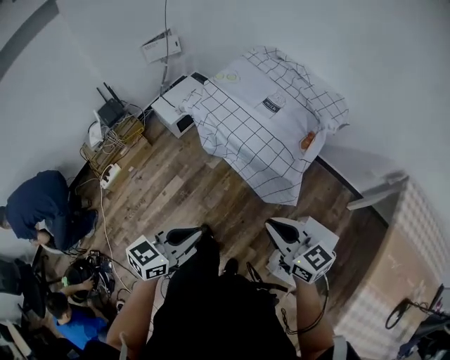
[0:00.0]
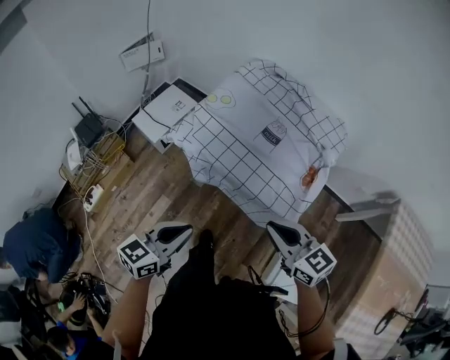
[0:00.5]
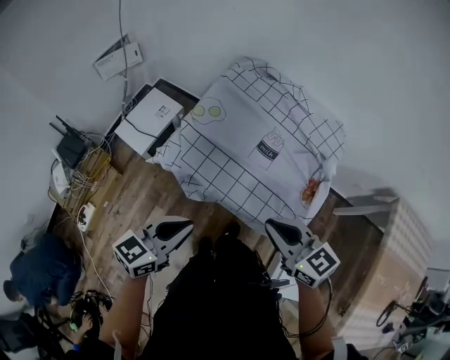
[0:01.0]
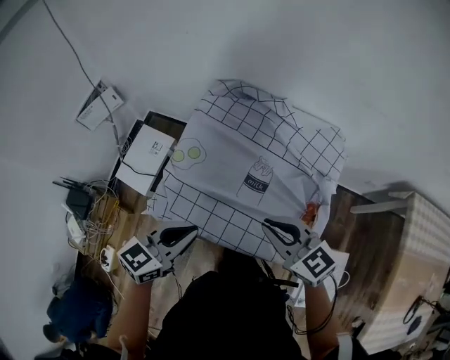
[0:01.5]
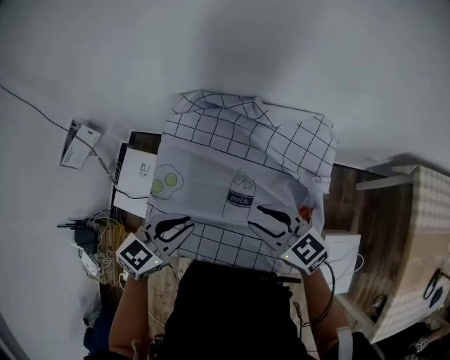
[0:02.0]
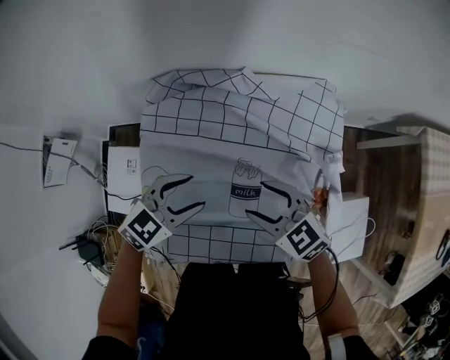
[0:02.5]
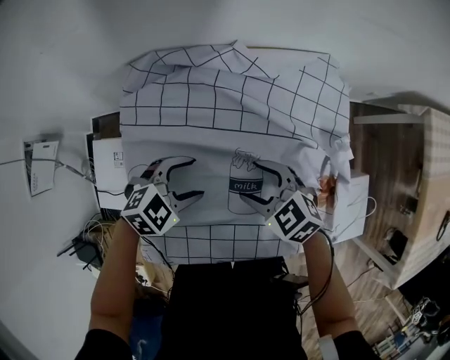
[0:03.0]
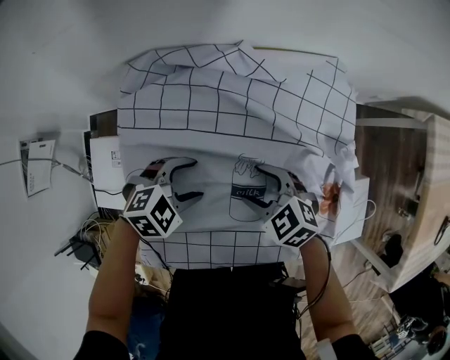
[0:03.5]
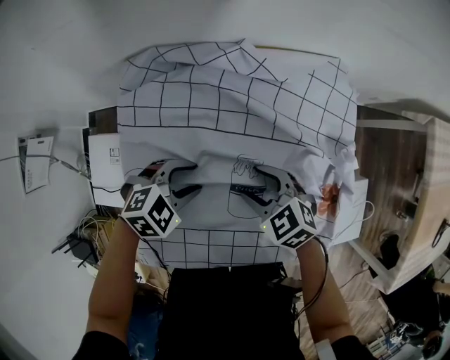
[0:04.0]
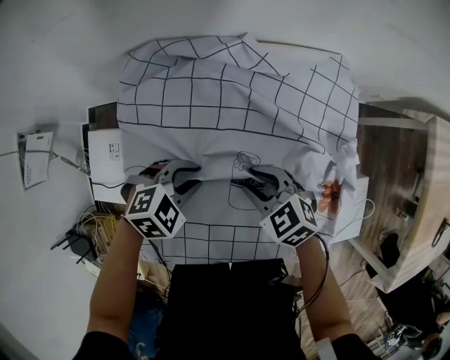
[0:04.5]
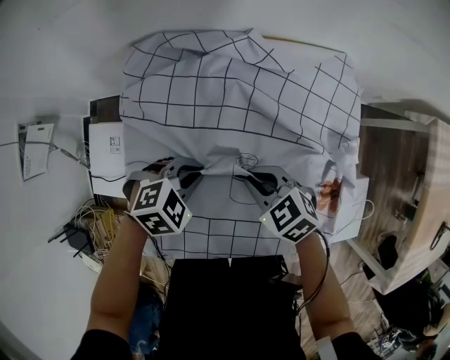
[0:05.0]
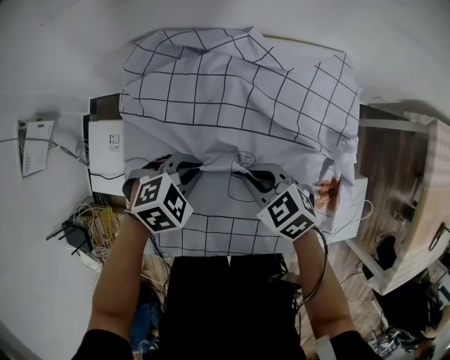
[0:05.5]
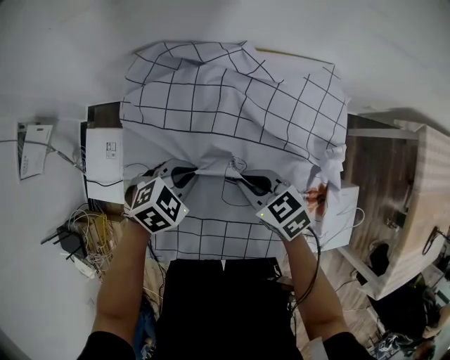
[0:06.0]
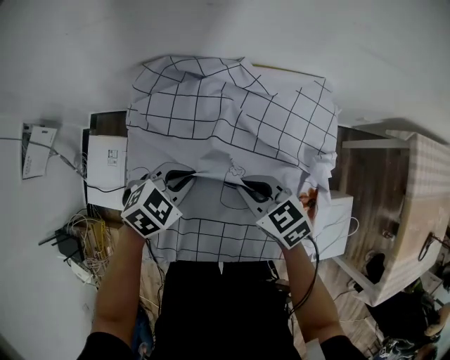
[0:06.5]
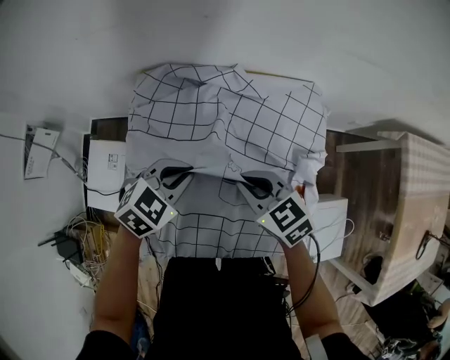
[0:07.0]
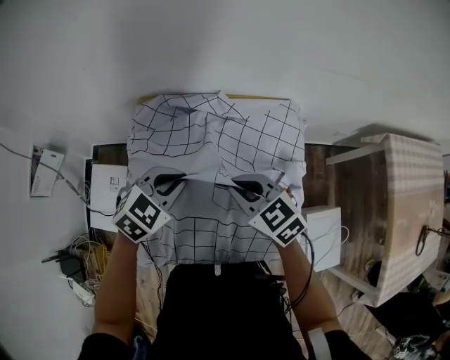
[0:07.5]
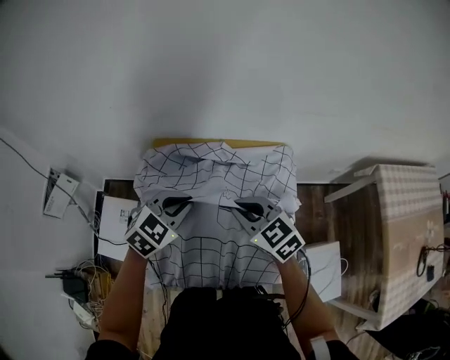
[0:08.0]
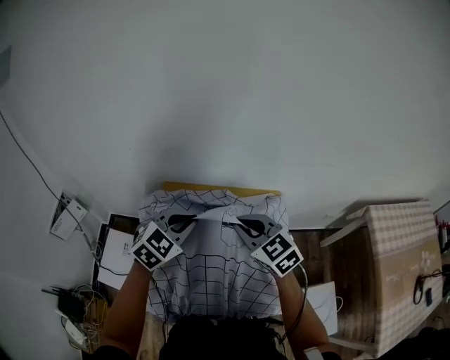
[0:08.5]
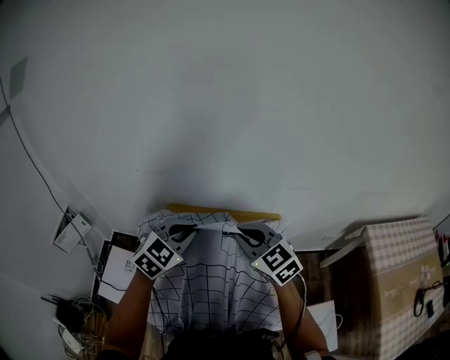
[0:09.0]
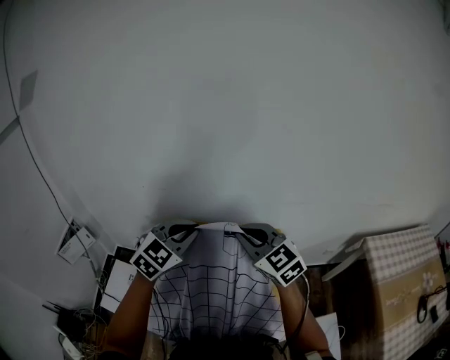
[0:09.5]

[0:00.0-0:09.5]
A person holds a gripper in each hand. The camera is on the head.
0:00.0 to 0:02.0: Both grippers are carried forward, roughly 50 cm. The right gripper opens up. Meanwhile the left gripper swivels some 40 degrees.
0:02.0 to 0:04.0: Both grippers move downward, about 20 cm. The right gripper swivels roughly 30 degrees, and opens up, while the left gripper rotates approximately 50 degrees, and opens its fingers.
0:04.0 to 0:05.5: The right gripper closes its fingers, while the left gripper closes its fingers.
0:05.5 to 0:07.5: Both grippers move upward, some 20 cm. The left gripper swivels some 20 degrees.
0:07.5 to 0:09.5: The grippers both shift upward by roughly 25 cm. The left gripper rotates some 30 degrees, while the right gripper rotates about 30 degrees.

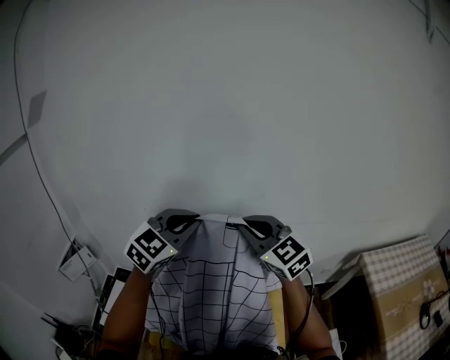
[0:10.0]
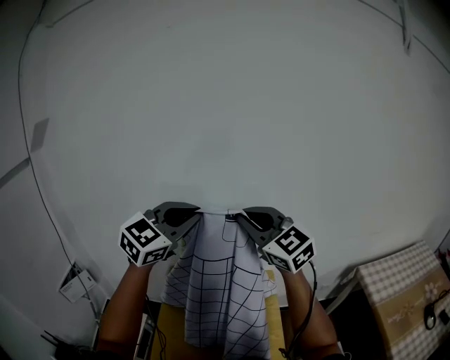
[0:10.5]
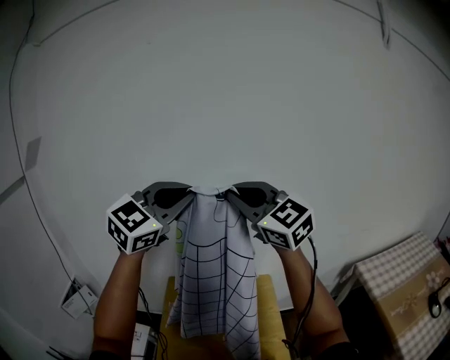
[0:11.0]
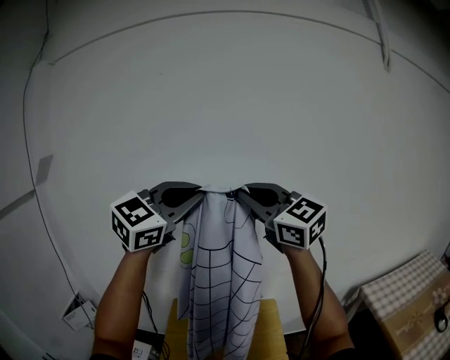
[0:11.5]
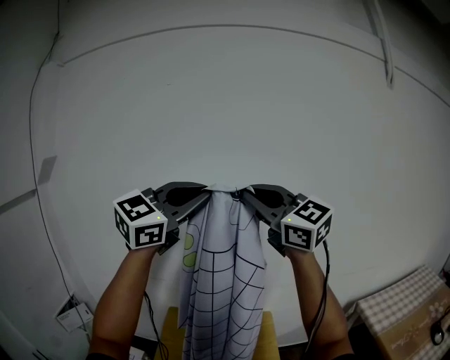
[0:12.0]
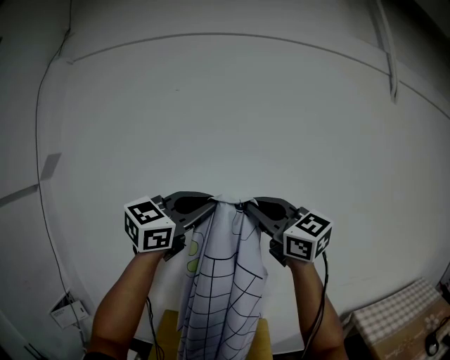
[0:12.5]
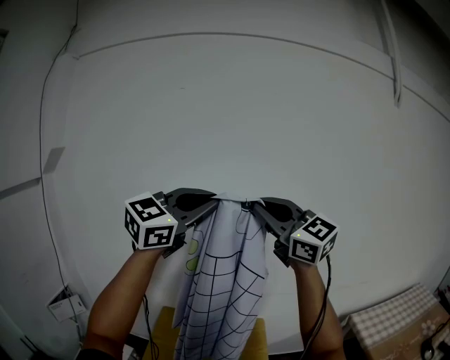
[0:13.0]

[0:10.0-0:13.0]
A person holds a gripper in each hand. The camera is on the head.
0:10.0 to 0:11.5: The grippers both shift upward by about 30 cm. The left gripper turns by about 20 degrees; the right gripper rotates roughly 20 degrees.
0:11.5 to 0:13.0: The grippers stay close to where they were, moving slightly.

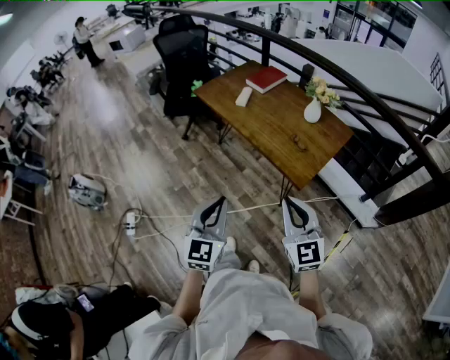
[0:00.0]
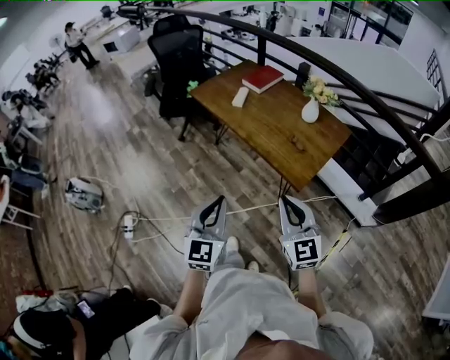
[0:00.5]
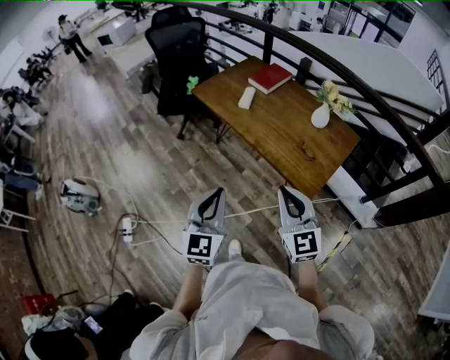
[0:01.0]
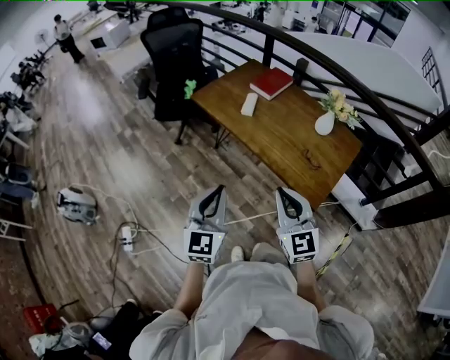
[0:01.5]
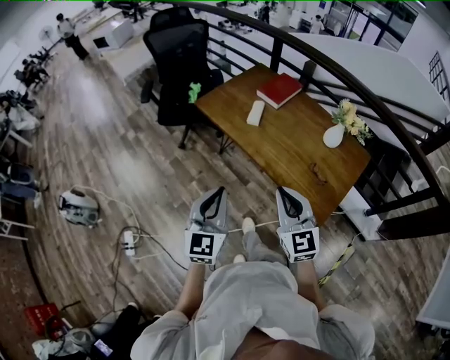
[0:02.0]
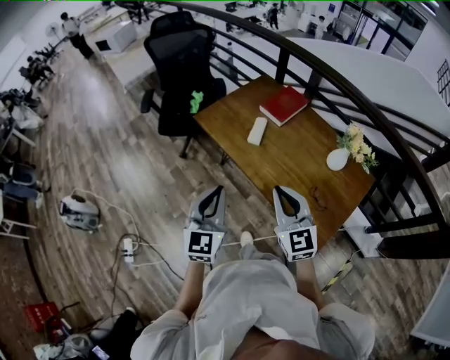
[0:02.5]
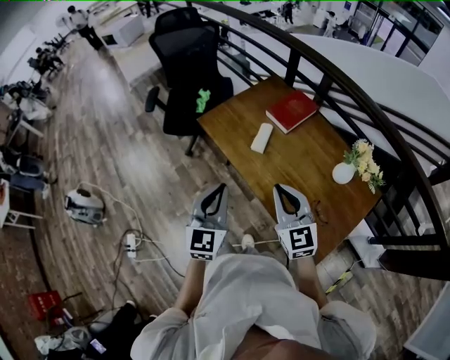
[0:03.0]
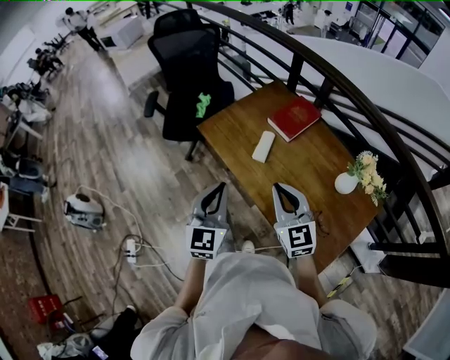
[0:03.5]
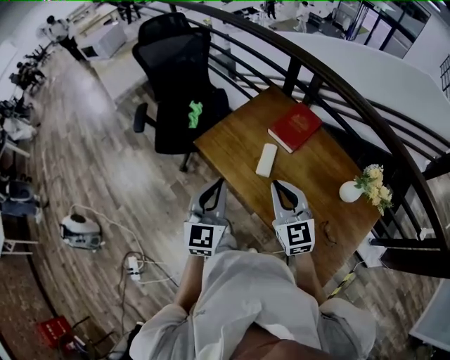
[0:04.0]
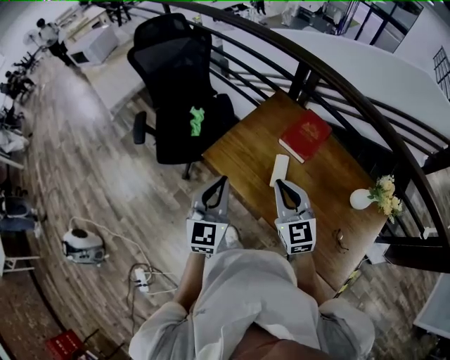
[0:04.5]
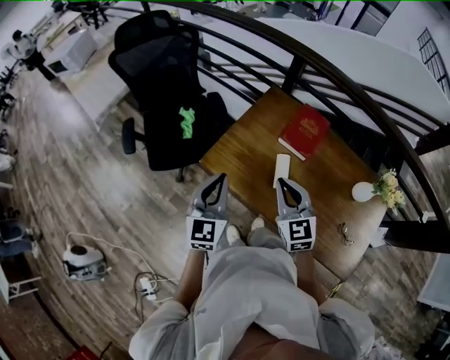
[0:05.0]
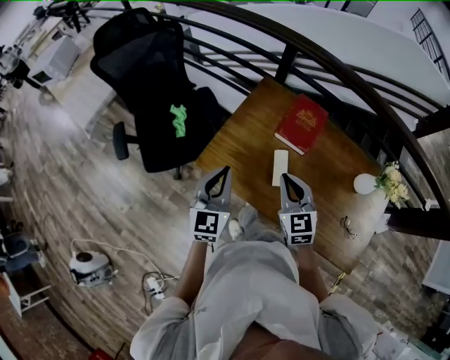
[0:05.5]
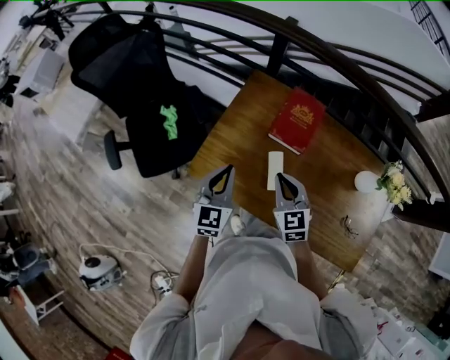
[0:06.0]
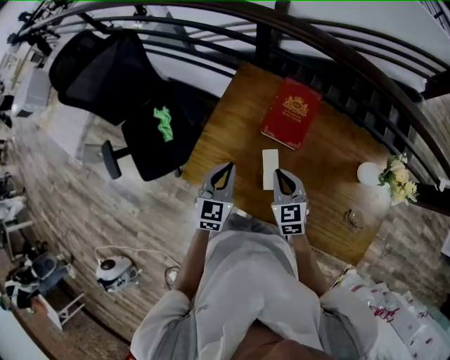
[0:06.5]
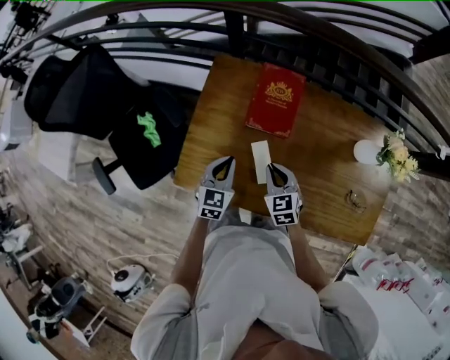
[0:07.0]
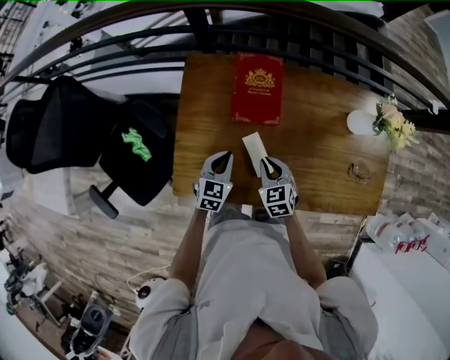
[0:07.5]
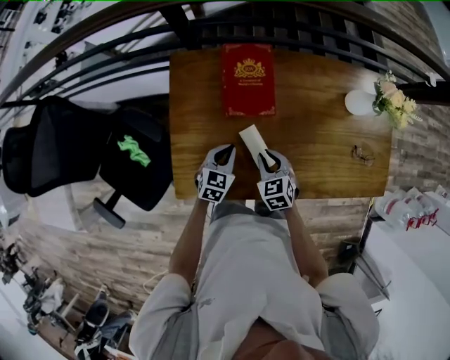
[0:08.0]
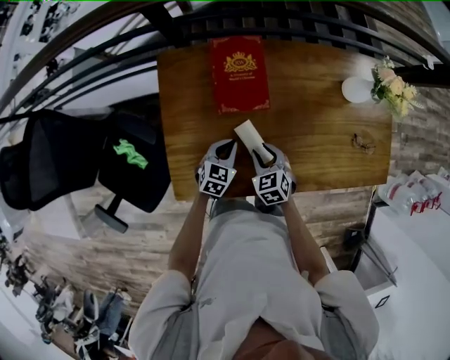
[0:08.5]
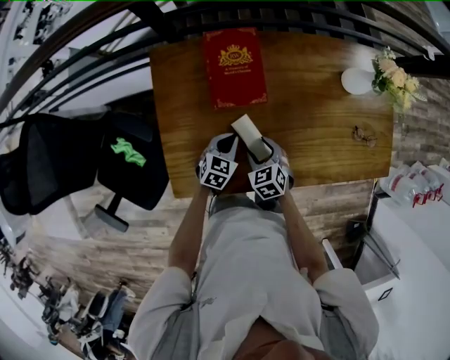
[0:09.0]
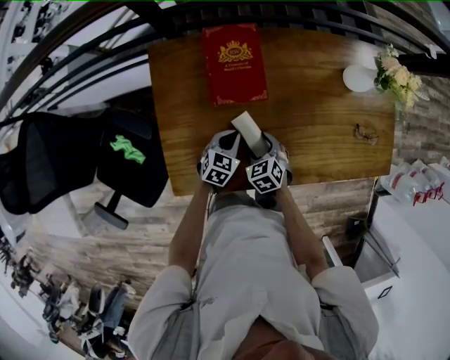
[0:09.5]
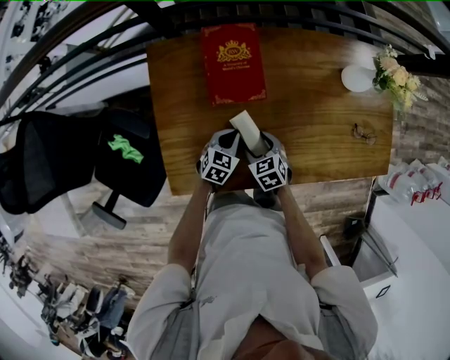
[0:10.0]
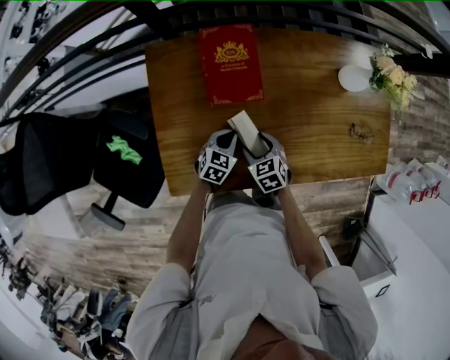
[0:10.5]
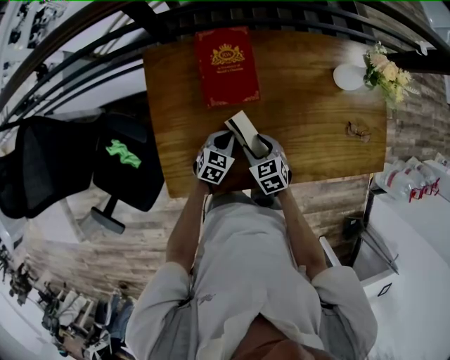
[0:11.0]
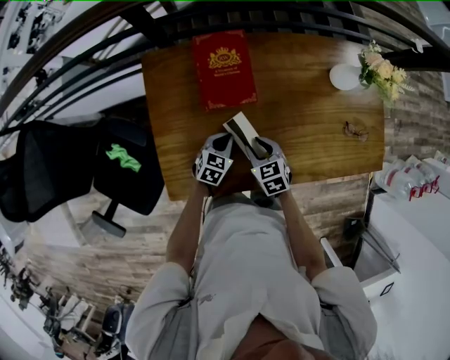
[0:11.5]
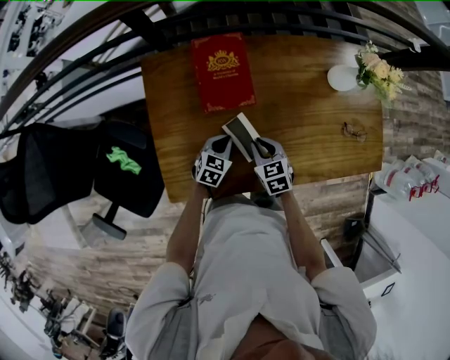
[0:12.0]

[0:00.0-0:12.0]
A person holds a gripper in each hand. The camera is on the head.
0:00.0 to 0:02.0: The right gripper travels forward and to the left by some 30 cm, while the left gripper heads forward, covering some 25 cm.
0:02.0 to 0:04.0: The grippers both shift forward by about 35 cm.
0:04.0 to 0:06.0: Both grippers move forward and downward, approximately 25 cm. The left gripper swivels about 20 degrees. The right gripper turns by roughly 30 degrees.
0:06.0 to 0:08.0: Both grippers travel together downward, approximately 20 cm. The left gripper rotates roughly 50 degrees, while the right gripper turns by about 30 degrees.
0:08.0 to 0:10.0: The two grippers go approximately 5 cm downward. The right gripper opens up.
0:10.0 to 0:12.0: The right gripper shifts by approximately 5 cm, and closes up.

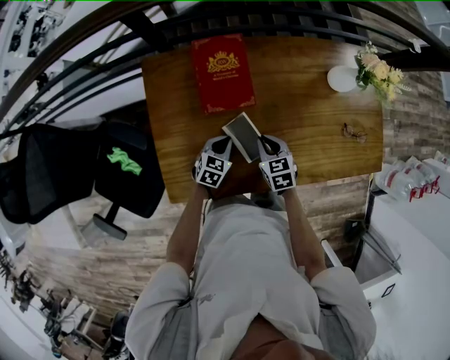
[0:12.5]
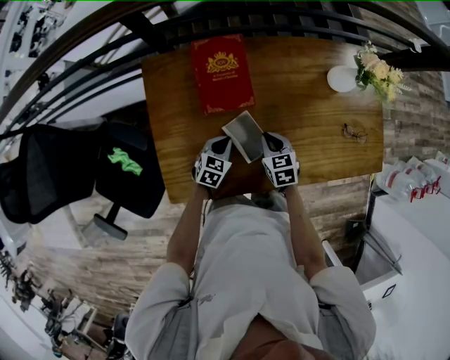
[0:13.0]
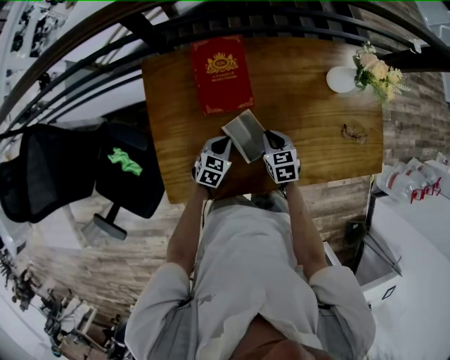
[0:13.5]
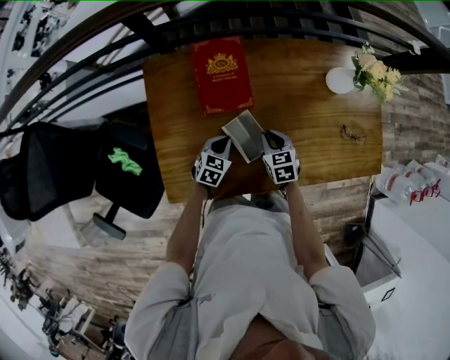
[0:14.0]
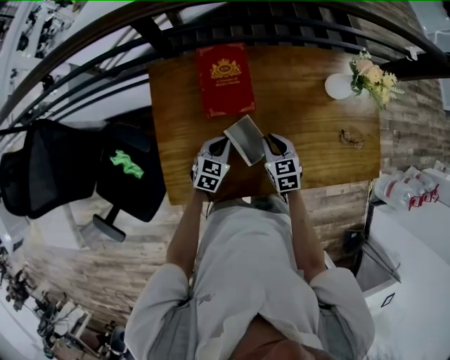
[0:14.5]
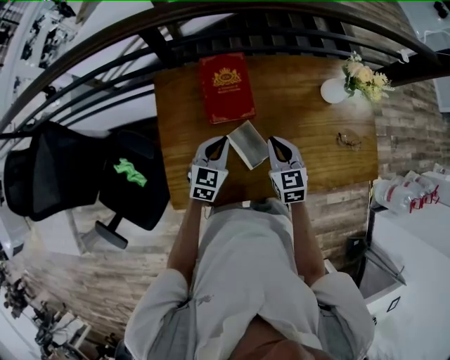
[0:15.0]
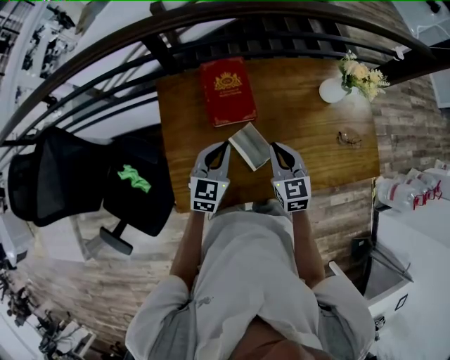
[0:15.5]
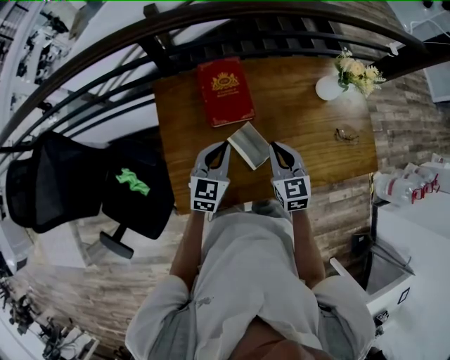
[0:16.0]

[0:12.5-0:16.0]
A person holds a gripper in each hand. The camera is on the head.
0:12.5 to 0:14.5: The grippers stay close to where they were, moving slightly.
0:14.5 to 0:16.0: The two grippers go approximately 15 cm upward. The left gripper rotates roughly 20 degrees.
